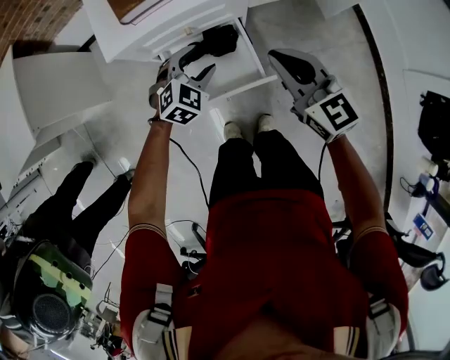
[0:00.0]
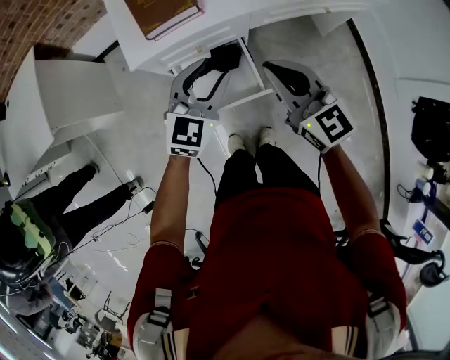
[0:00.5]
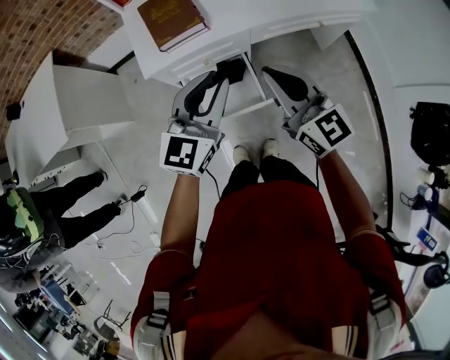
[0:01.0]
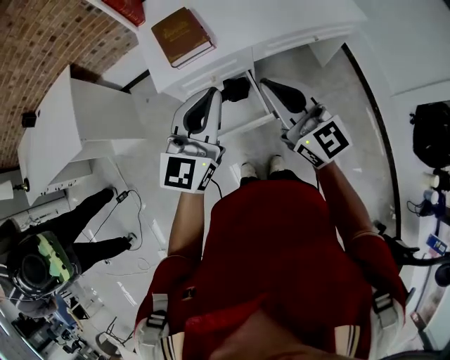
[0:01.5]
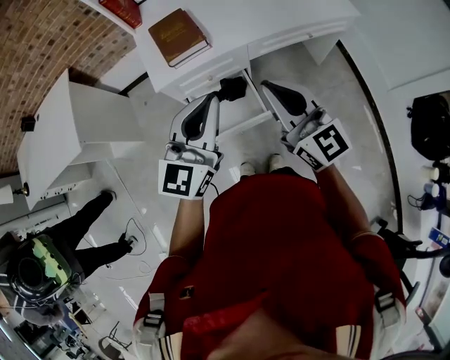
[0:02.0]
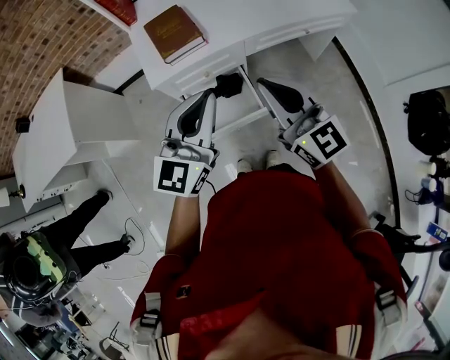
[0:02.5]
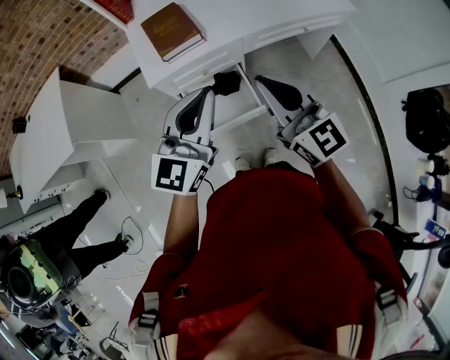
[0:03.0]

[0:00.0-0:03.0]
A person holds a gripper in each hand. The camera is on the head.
0:00.0 to 0:01.5: The left gripper is displaced upward by approximately 40 cm, points its fingers approximately 40 degrees further upward, and closes up; the right gripper shifts approximately 25 cm upward, and swivels approximately 20 degrees.
0:01.5 to 0:03.0: There are only small adjustments of the grippers.

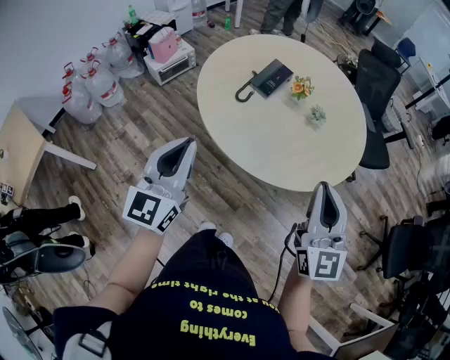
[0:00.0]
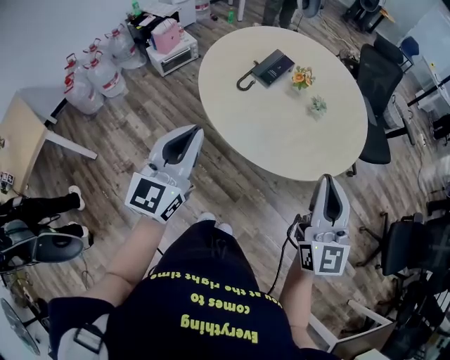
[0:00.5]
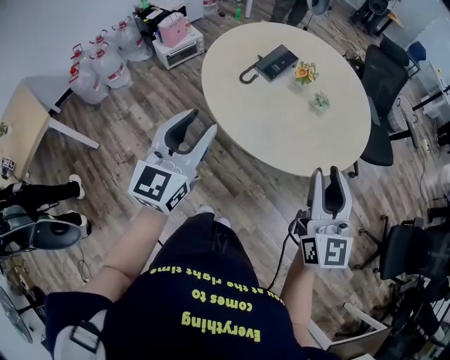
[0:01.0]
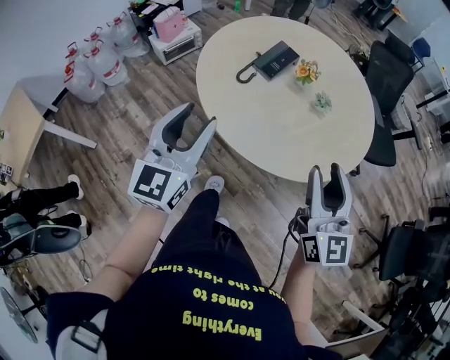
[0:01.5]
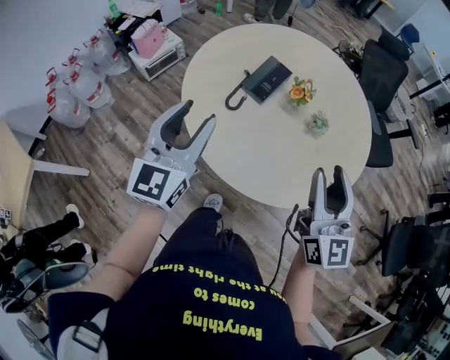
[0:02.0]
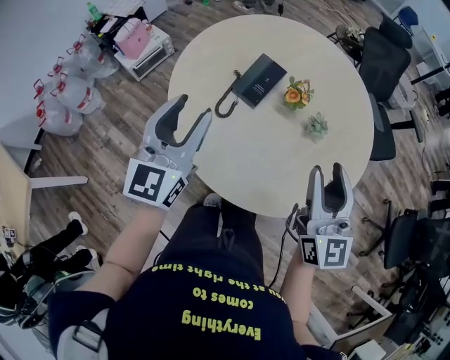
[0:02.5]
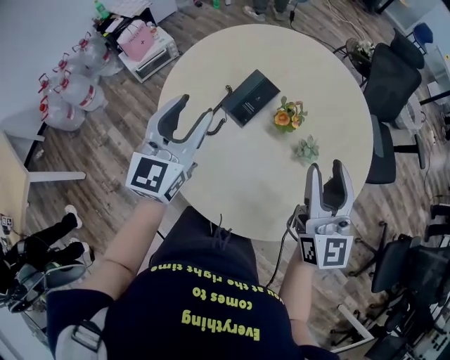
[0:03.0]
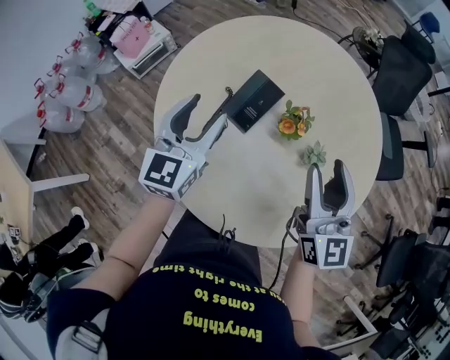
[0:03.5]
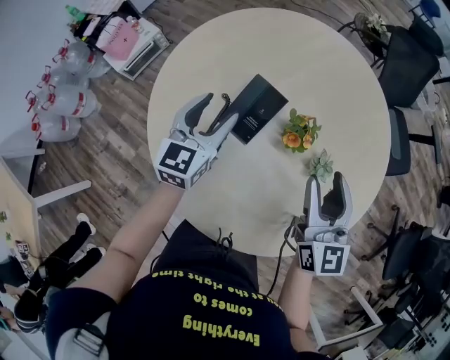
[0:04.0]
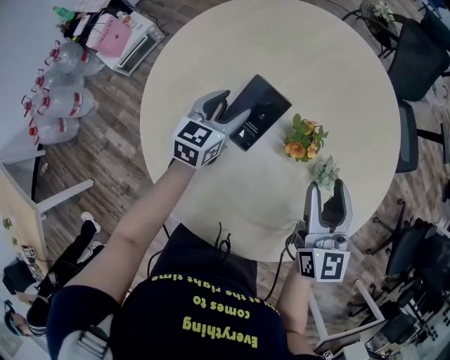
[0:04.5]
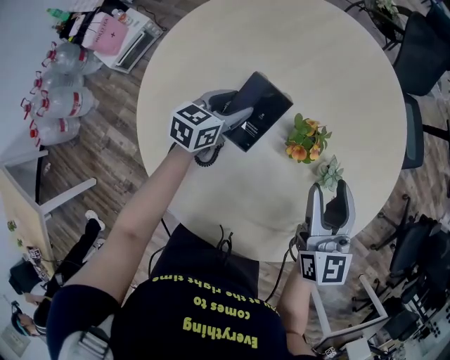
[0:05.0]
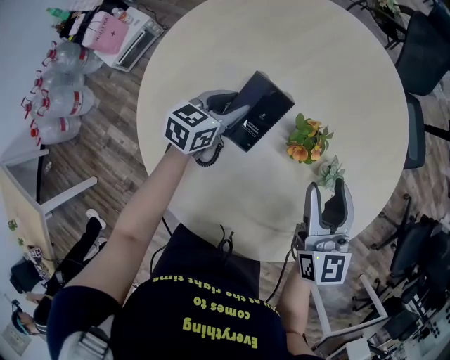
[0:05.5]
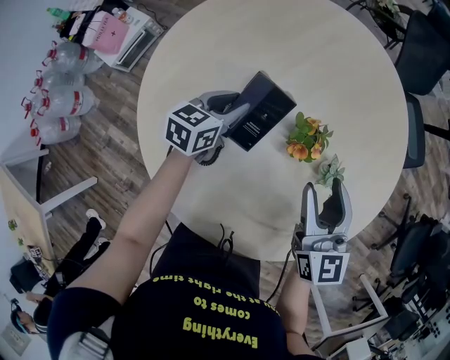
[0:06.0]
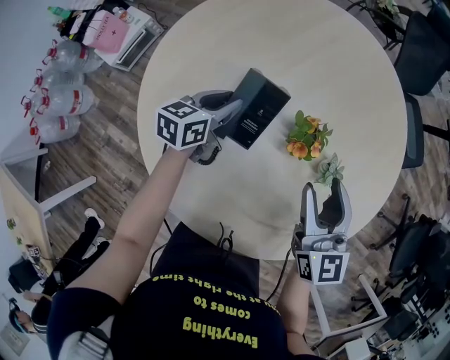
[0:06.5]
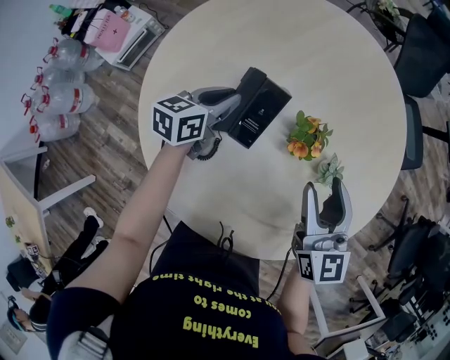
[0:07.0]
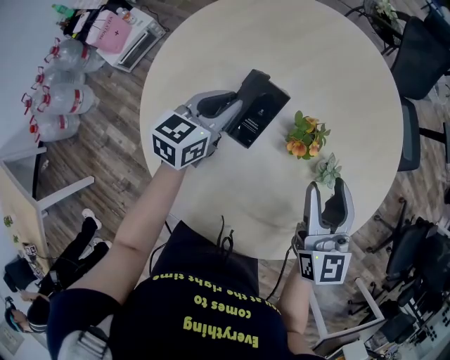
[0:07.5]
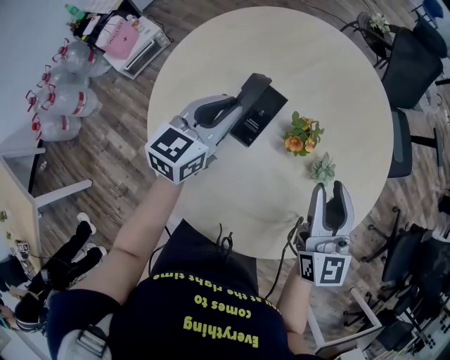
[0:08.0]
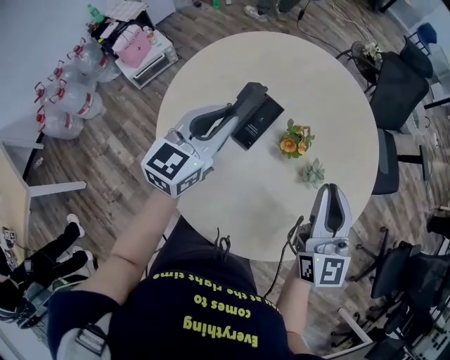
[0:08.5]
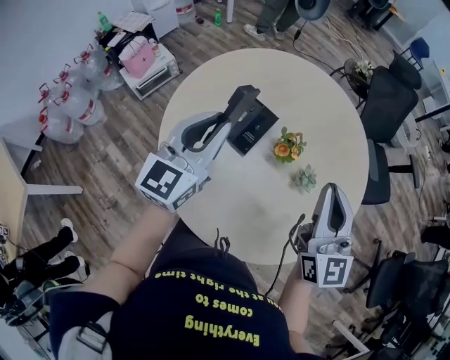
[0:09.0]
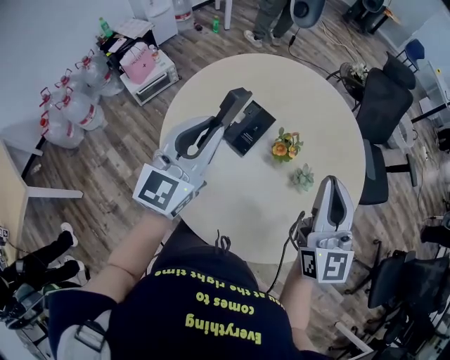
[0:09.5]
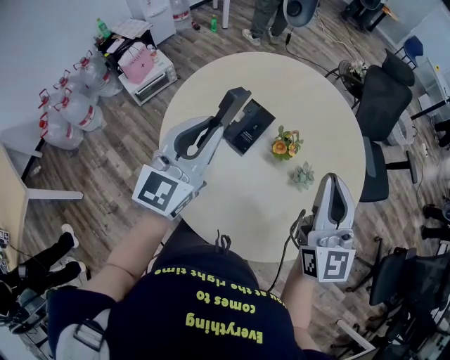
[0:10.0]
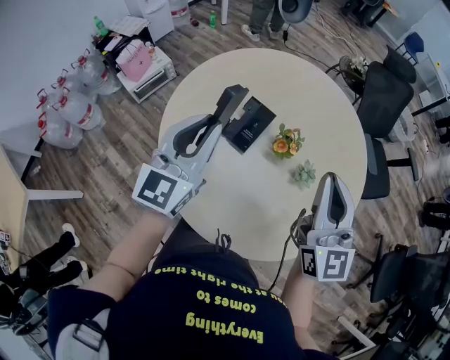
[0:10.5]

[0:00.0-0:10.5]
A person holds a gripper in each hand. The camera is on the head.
0:00.0 to 0:02.0: The two grippers go approximately 15 cm forward. The left gripper opens. The right gripper opens its fingers.
0:02.0 to 0:04.0: The grippers both shift forward and downward by some 35 cm. The left gripper rotates some 20 degrees.
0:04.0 to 0:06.5: The right gripper is displaced downward by roughly 5 cm; the left gripper shifts approximately 15 cm downward and forward, turns by roughly 30 degrees, and closes up.
0:06.5 to 0:08.5: The left gripper moves upward and backward, some 25 cm, and swivels about 40 degrees; the right gripper travels upward and backward by about 15 cm, and closes up.
0:08.5 to 0:10.5: The right gripper heads upward, covering approximately 5 cm; the left gripper heads upward and backward, covering about 10 cm.

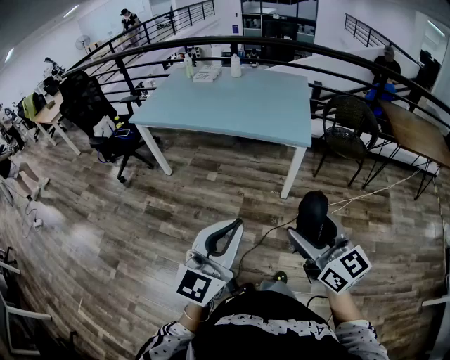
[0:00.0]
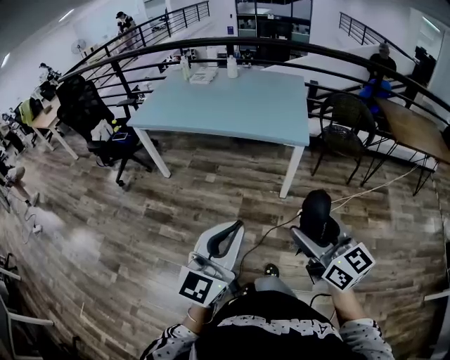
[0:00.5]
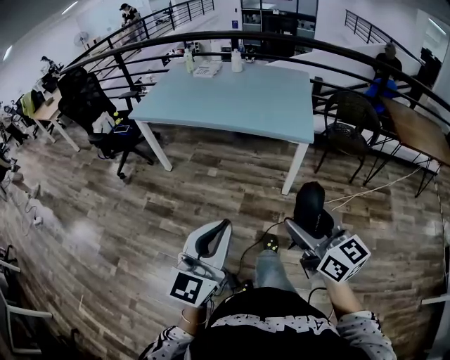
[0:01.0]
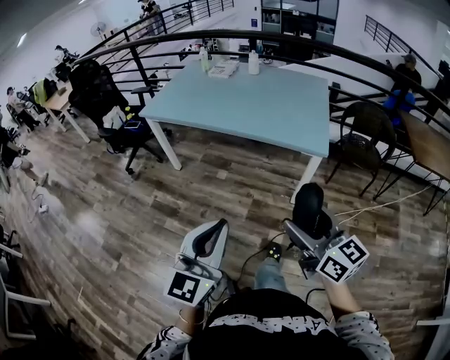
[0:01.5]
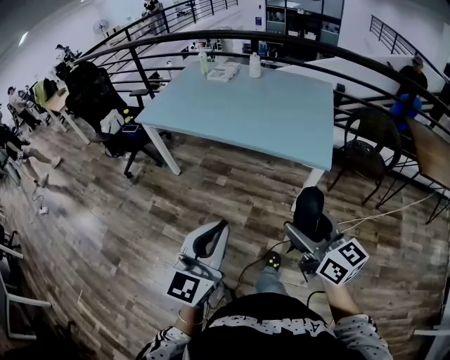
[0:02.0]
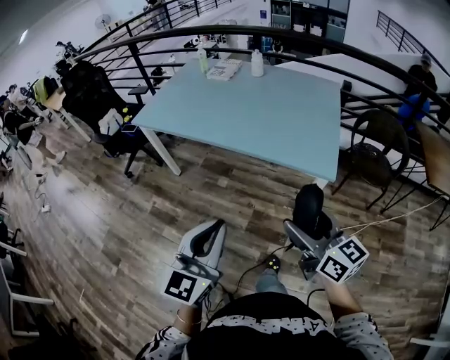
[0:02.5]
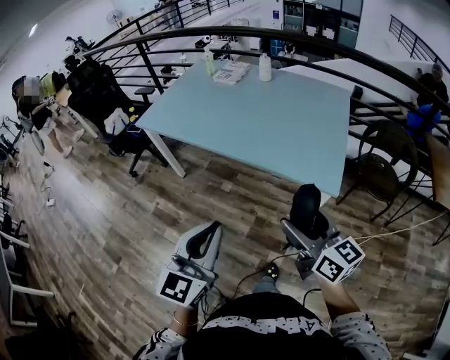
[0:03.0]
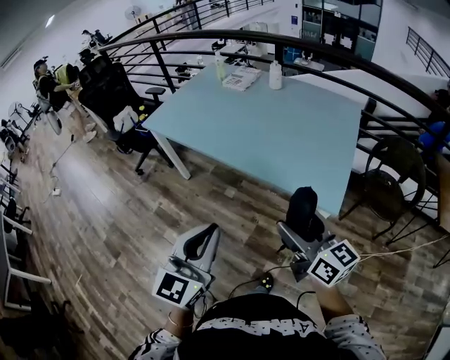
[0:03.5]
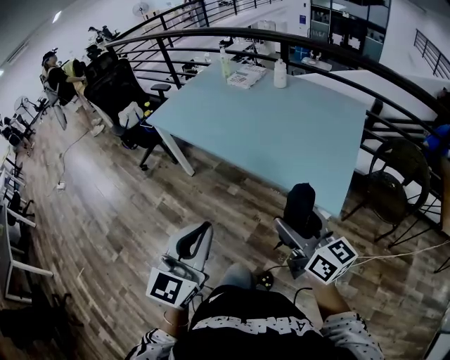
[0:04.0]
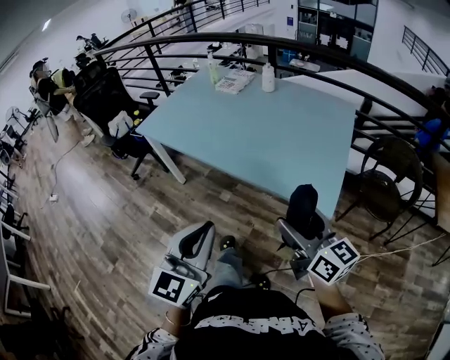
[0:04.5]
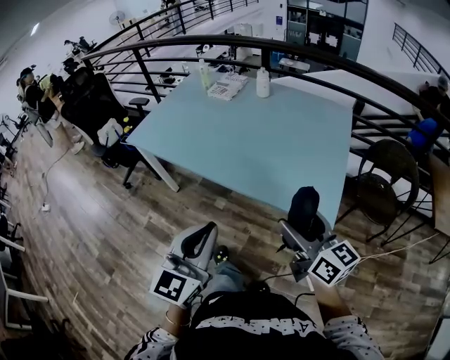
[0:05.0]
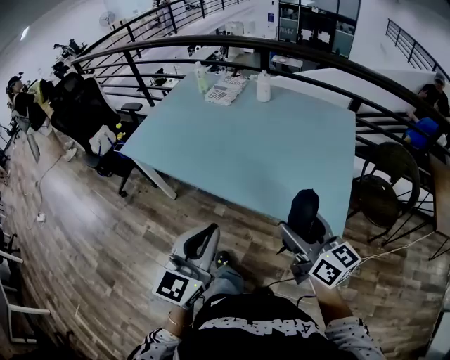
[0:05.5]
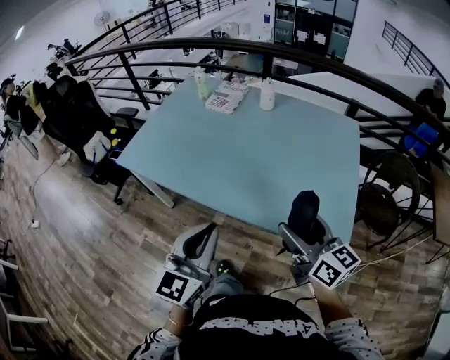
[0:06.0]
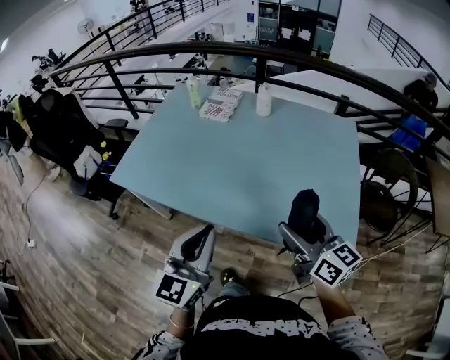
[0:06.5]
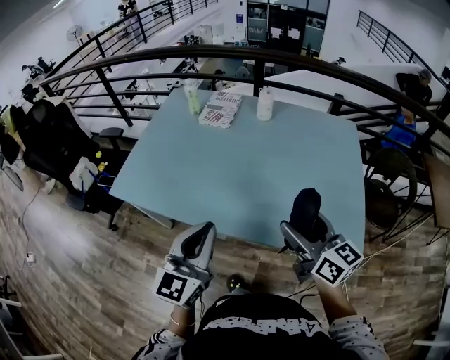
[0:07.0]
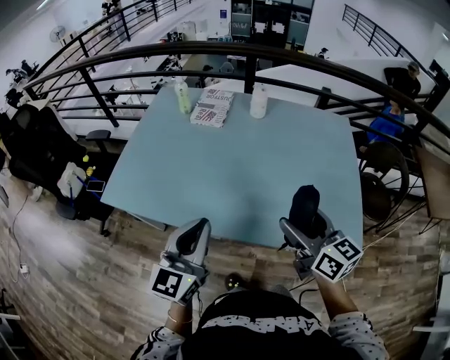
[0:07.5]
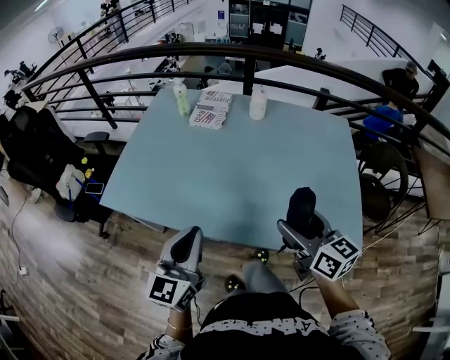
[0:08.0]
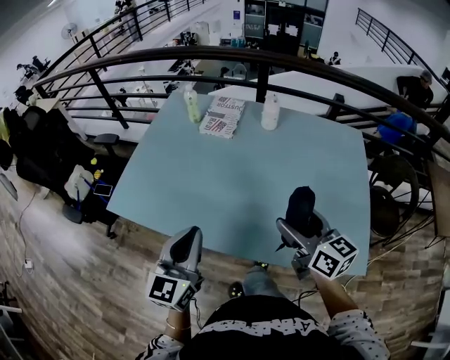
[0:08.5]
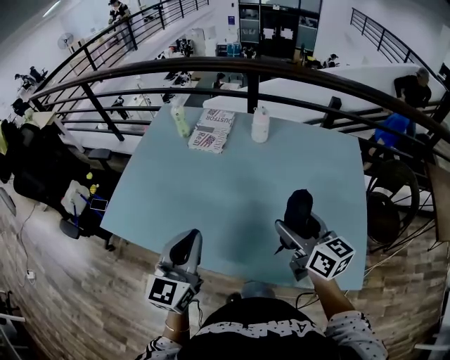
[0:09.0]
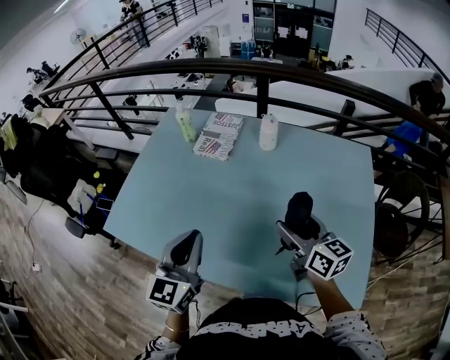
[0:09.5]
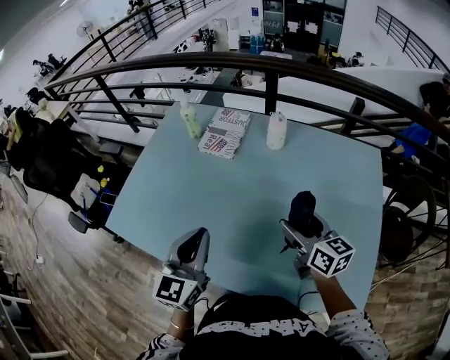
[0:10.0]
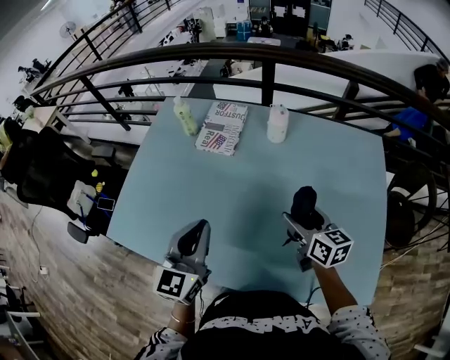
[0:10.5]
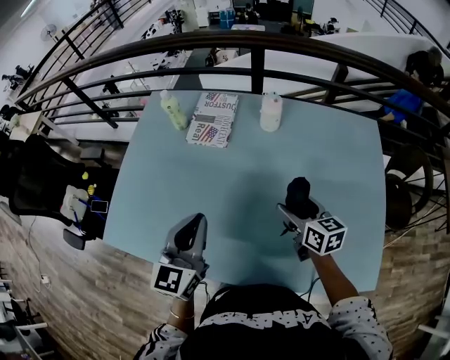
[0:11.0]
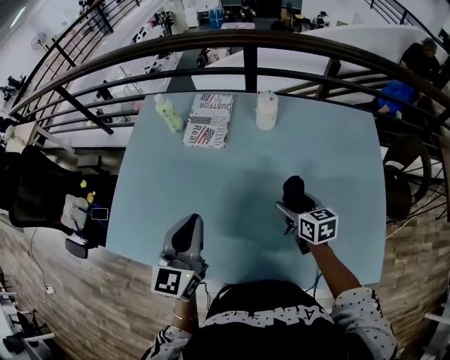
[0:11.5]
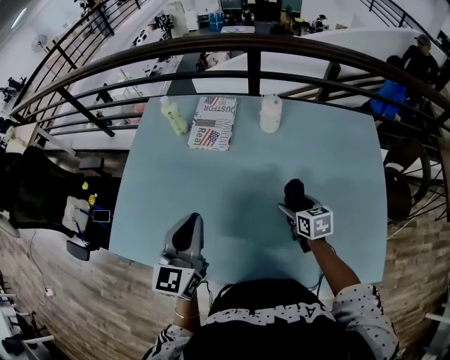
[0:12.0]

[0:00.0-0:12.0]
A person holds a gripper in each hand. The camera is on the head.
0:00.0 to 0:02.0: The grippers both shift forward by roughly 20 cm.
0:02.0 to 0:04.0: Both grippers move forward and to the right, roughly 20 cm.
0:04.0 to 0:06.0: The grippers both shift forward by some 25 cm.
0:06.0 to 0:08.0: Both grippers travel together forward and to the left, approximately 20 cm.
0:08.0 to 0:10.0: The left gripper is displaced forward and to the right by roughly 20 cm. The right gripper shifts roughly 25 cm forward.
0:10.0 to 0:12.0: The left gripper is displaced forward and to the left by roughly 10 cm. Meanwhile the right gripper moves downward, some 15 cm, and points its fingers approximately 30 degrees further downward.

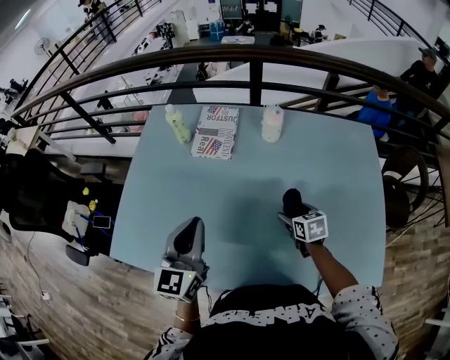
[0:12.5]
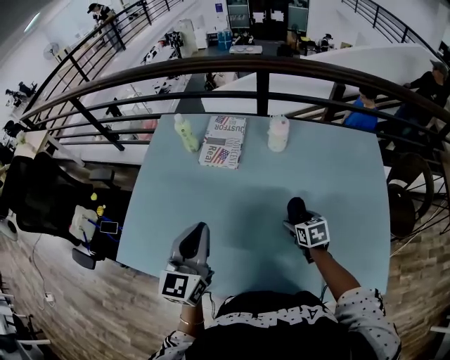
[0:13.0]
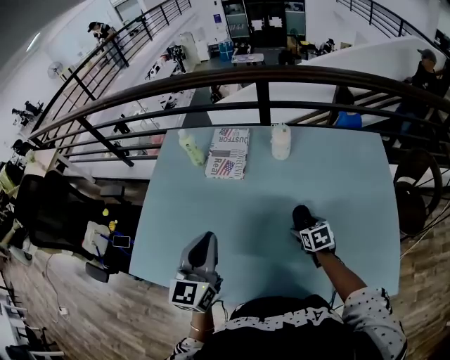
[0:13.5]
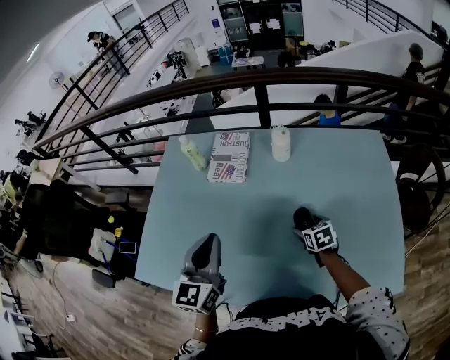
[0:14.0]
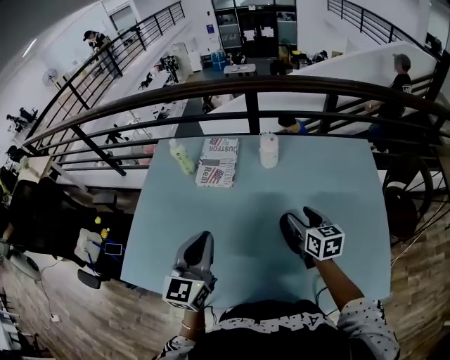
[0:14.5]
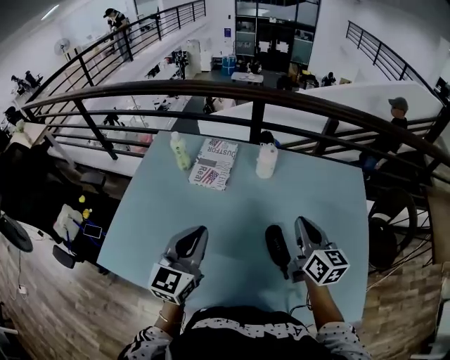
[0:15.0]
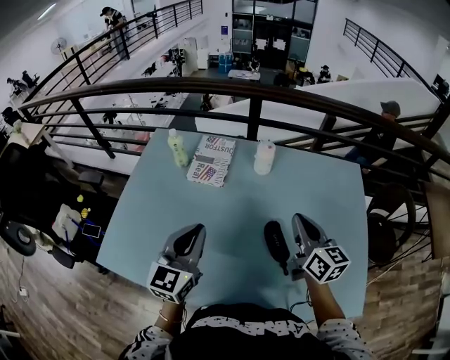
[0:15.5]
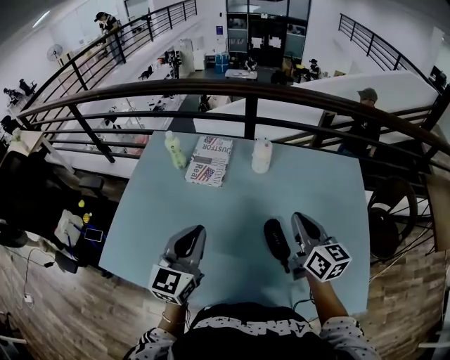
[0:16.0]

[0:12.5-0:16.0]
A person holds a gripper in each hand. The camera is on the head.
0:12.5 to 0:14.5: The right gripper shifts approximately 15 cm upward, and changes its angle by roughly 20 degrees.
0:14.5 to 0:16.0: The right gripper goes roughly 10 cm upward, and closes.
